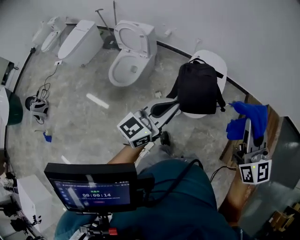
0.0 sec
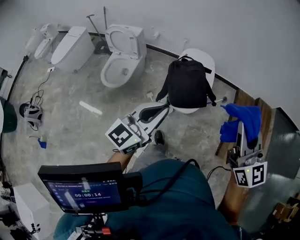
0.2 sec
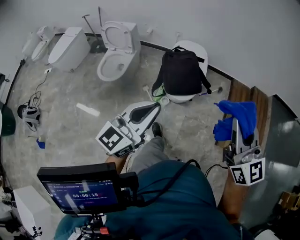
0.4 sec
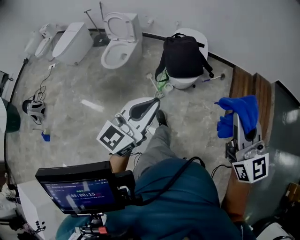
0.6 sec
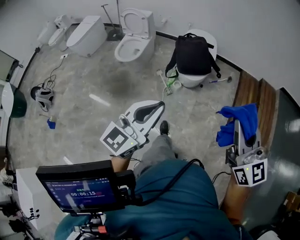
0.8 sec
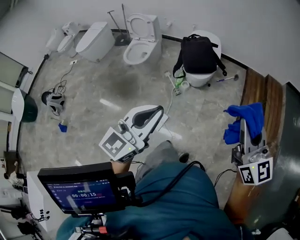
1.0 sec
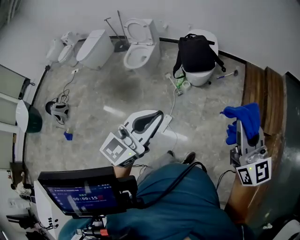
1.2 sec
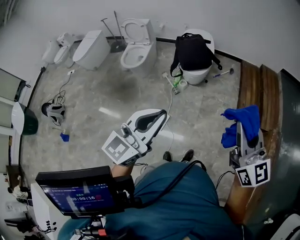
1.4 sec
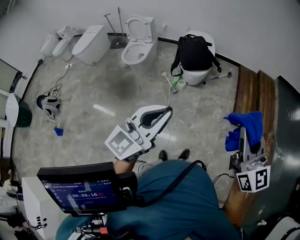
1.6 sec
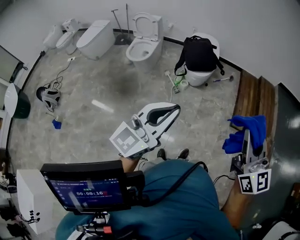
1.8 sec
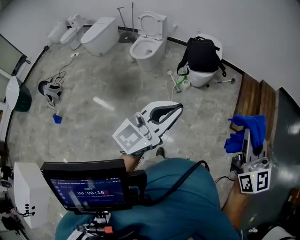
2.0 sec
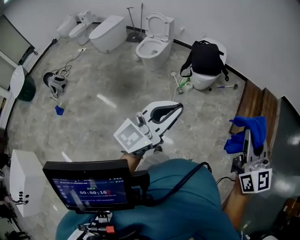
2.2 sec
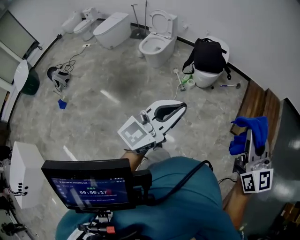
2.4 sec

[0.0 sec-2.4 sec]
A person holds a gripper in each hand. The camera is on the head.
0.0 sec to 1.2 sec: The pair of grippers is taken backward, about 50 cm.
1.2 sec to 2.4 sec: The left gripper moves backward and to the right, some 15 cm; the right gripper moves backward, approximately 15 cm.

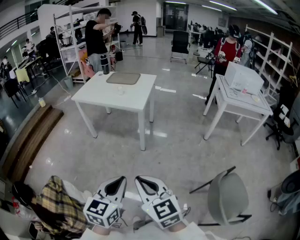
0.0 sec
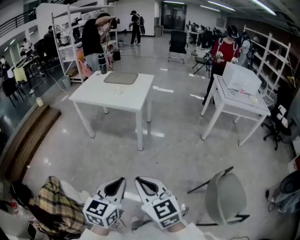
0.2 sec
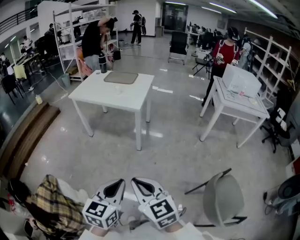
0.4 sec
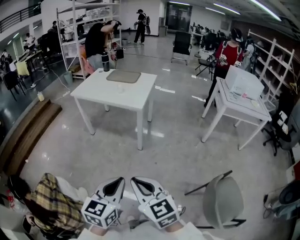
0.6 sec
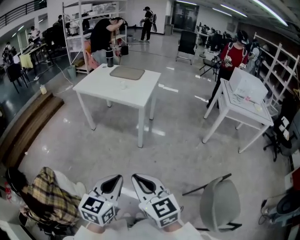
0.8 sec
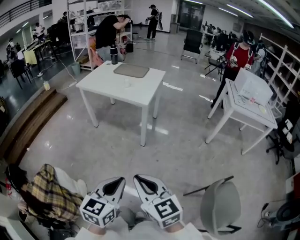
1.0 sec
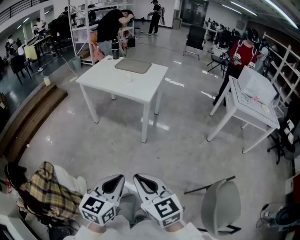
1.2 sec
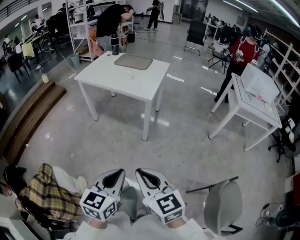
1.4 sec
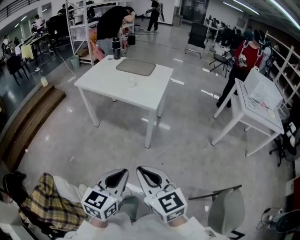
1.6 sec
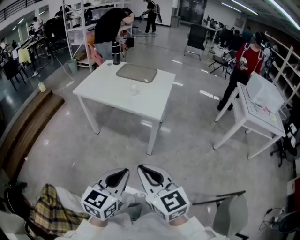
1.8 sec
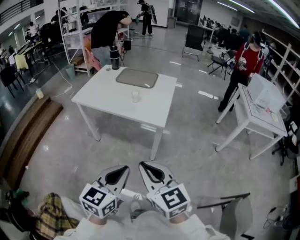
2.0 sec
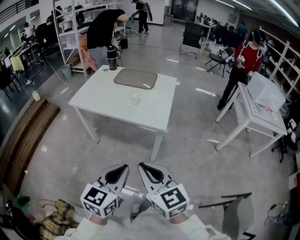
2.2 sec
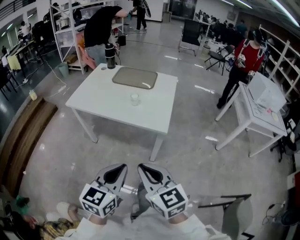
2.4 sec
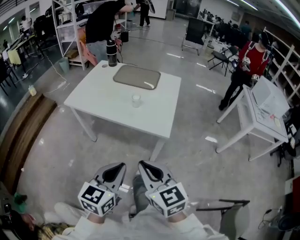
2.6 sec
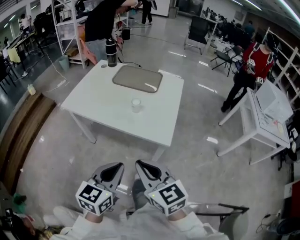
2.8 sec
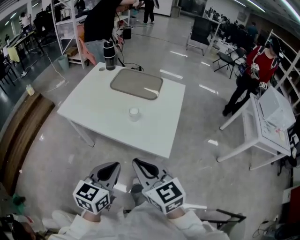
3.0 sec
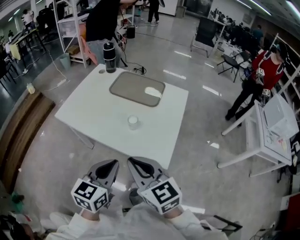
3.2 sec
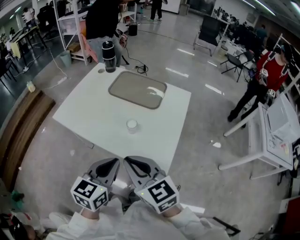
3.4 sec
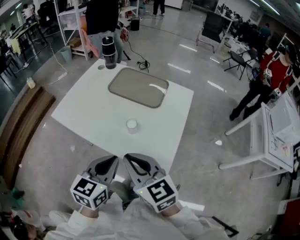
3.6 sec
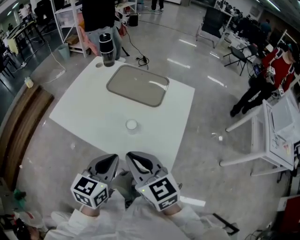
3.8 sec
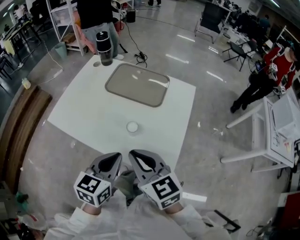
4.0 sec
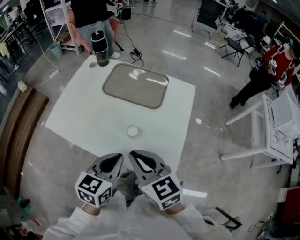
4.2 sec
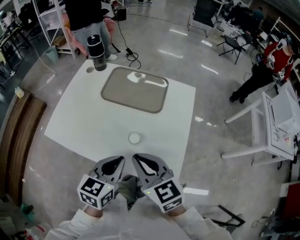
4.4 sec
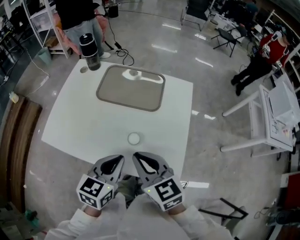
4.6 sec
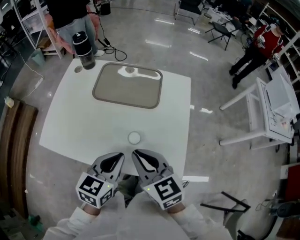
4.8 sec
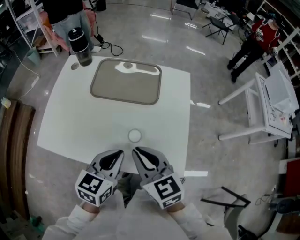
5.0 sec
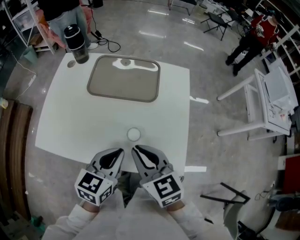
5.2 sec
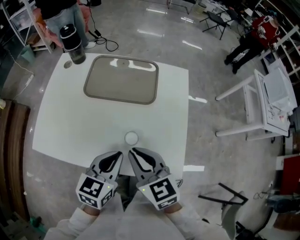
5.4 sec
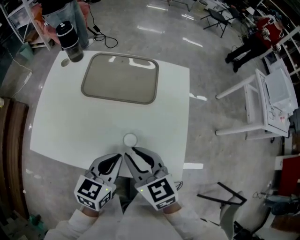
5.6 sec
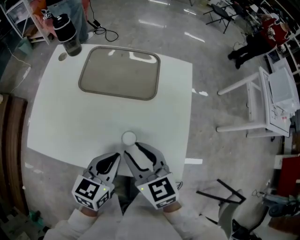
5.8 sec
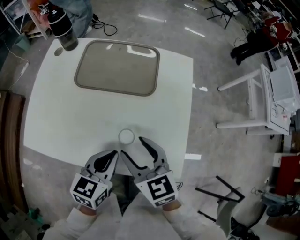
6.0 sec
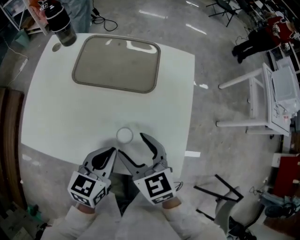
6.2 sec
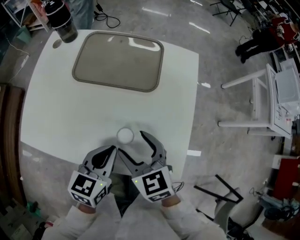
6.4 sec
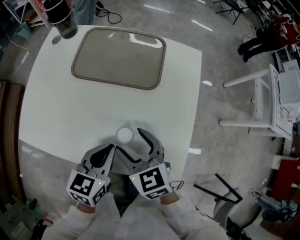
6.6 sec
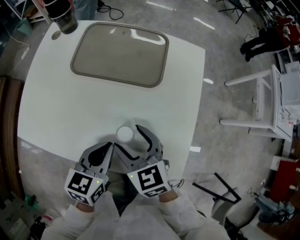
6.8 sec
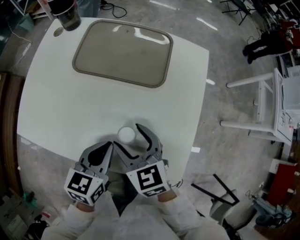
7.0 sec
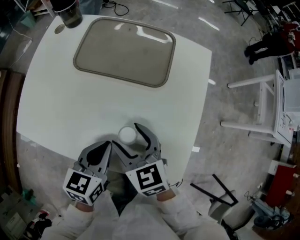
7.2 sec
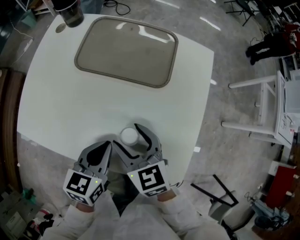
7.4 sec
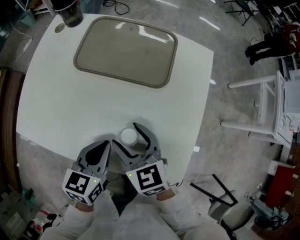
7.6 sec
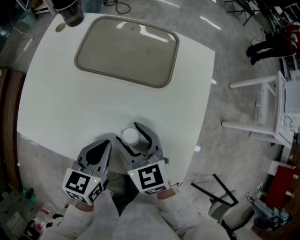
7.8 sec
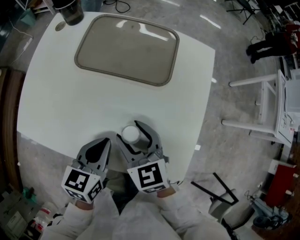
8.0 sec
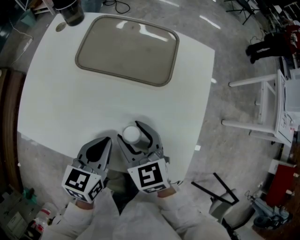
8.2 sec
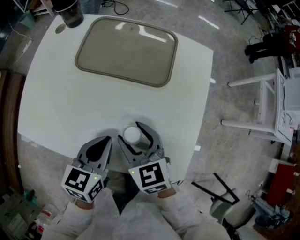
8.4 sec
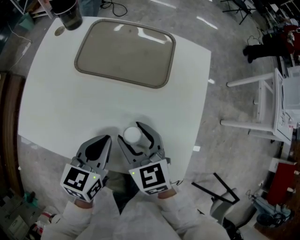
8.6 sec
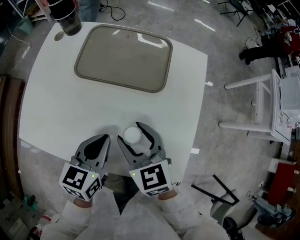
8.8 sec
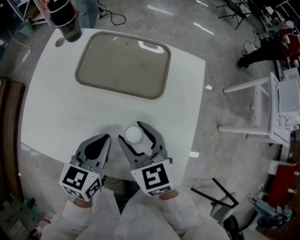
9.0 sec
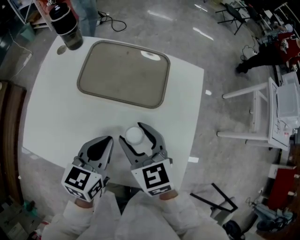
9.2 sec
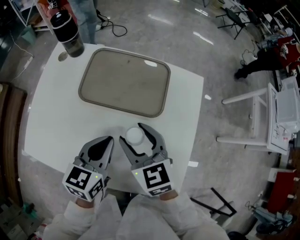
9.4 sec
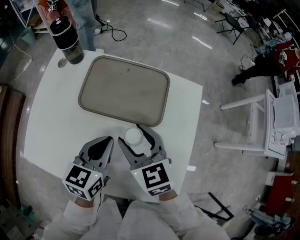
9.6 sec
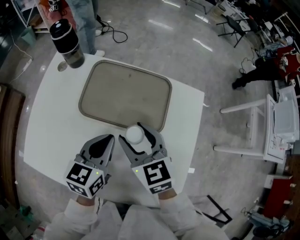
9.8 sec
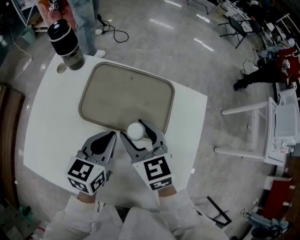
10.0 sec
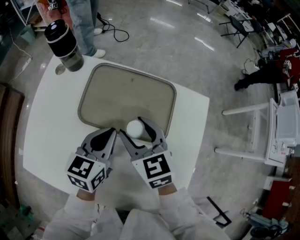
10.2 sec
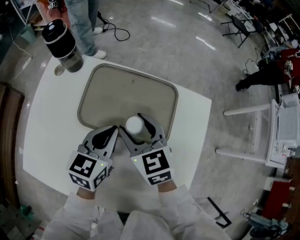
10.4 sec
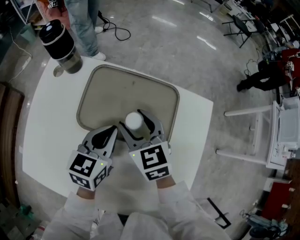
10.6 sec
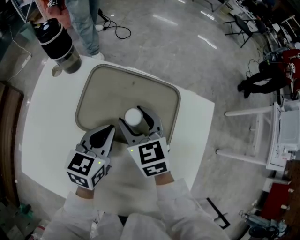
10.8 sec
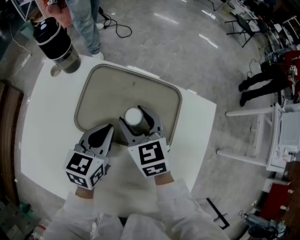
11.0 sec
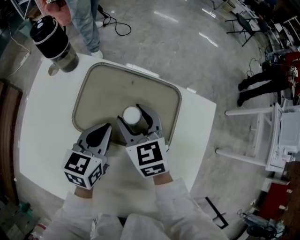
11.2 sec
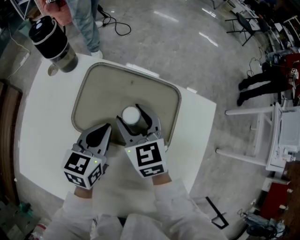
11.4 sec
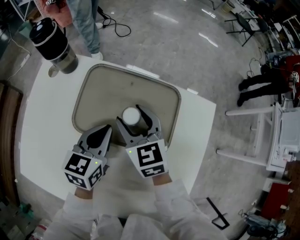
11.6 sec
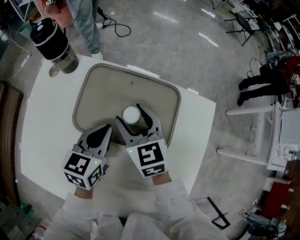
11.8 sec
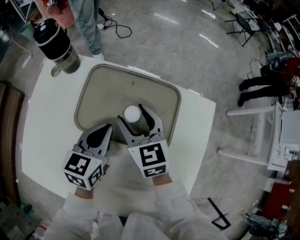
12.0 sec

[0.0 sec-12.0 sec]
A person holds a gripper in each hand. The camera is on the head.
0.0 sec to 1.6 sec: The grippers both shift forward by some 15 cm.
1.6 sec to 3.0 sec: The pair of grippers is taken forward, approximately 40 cm.
3.0 sec to 4.4 sec: Both grippers move forward, approximately 25 cm.
4.4 sec to 6.0 sec: Both grippers travel together downward and forward, approximately 10 cm. The right gripper opens.
6.0 sec to 7.6 sec: The right gripper is displaced downward by approximately 5 cm. The left gripper shifts by approximately 5 cm.
7.6 sec to 9.0 sec: The right gripper ends up some 5 cm from where it was. The left gripper shifts roughly 5 cm forward.
9.0 sec to 10.4 sec: The two grippers go roughly 20 cm forward.
10.4 sec to 12.0 sec: The right gripper goes roughly 5 cm forward.

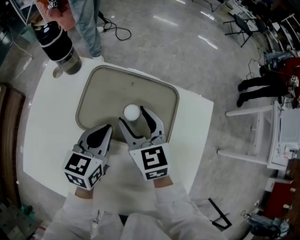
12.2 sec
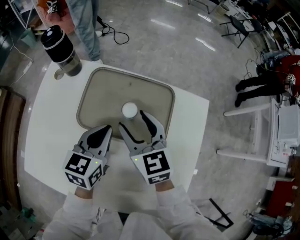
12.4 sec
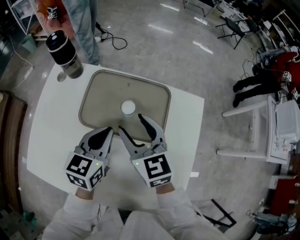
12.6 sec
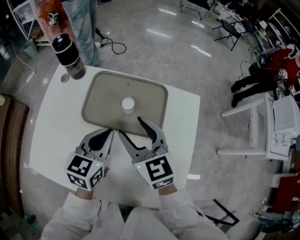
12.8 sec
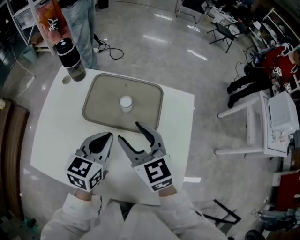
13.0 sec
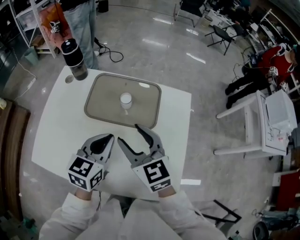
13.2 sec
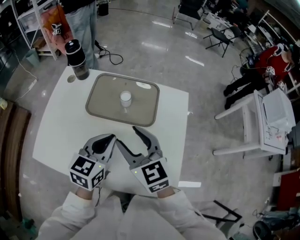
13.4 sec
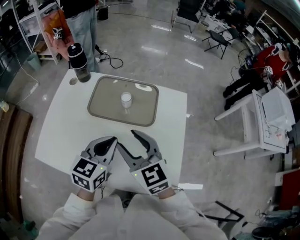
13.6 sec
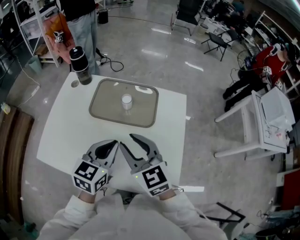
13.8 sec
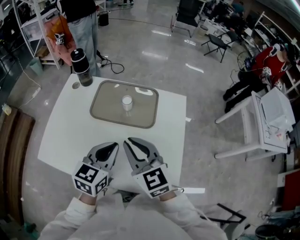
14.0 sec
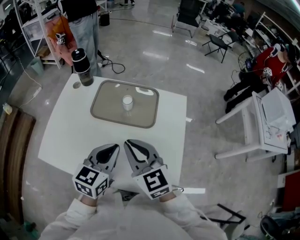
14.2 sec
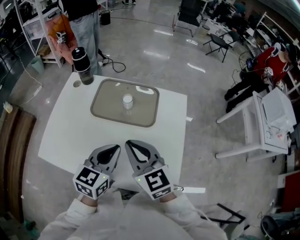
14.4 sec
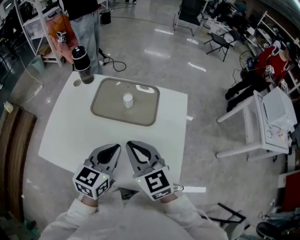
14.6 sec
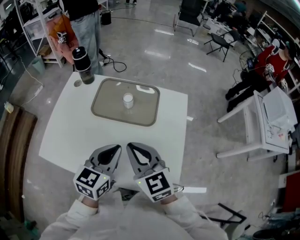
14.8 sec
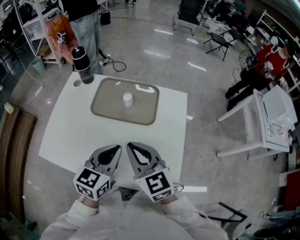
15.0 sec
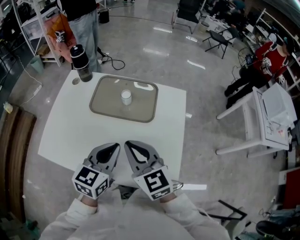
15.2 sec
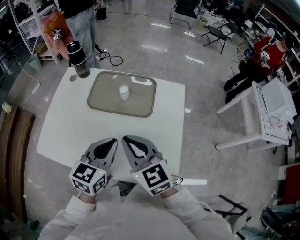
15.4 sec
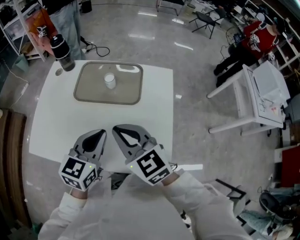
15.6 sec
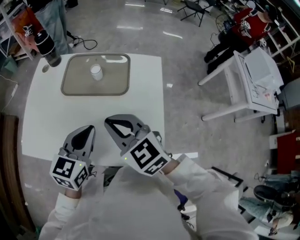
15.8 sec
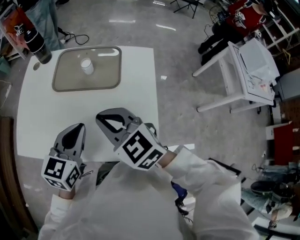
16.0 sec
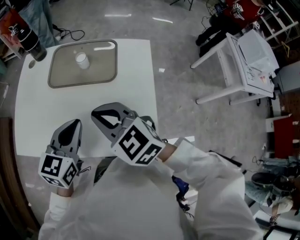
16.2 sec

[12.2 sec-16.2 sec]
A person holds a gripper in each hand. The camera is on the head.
12.2 sec to 13.6 sec: Both grippers move backward and upward, approximately 25 cm.
13.6 sec to 14.8 sec: The right gripper closes its fingers.
14.8 sec to 16.2 sec: The grippers stay close to where they were, moving slightly.

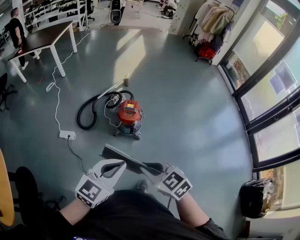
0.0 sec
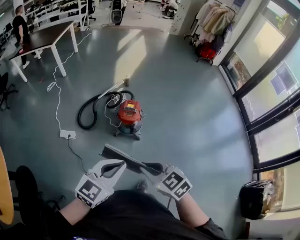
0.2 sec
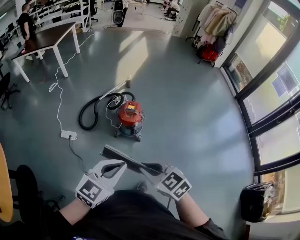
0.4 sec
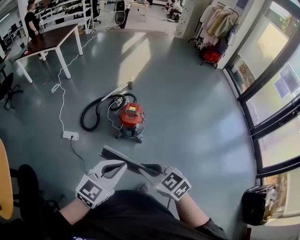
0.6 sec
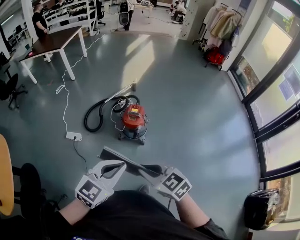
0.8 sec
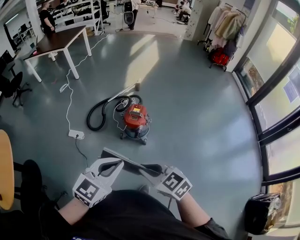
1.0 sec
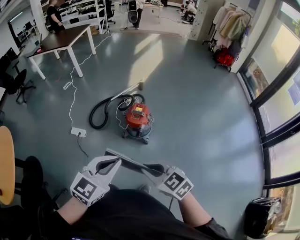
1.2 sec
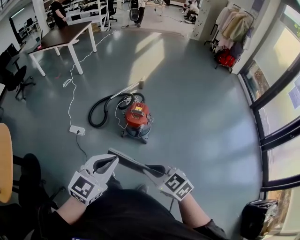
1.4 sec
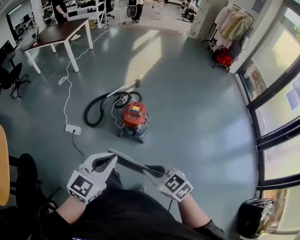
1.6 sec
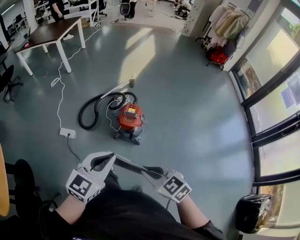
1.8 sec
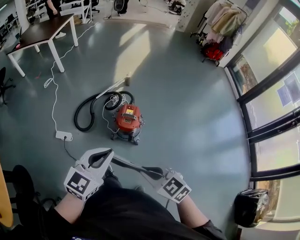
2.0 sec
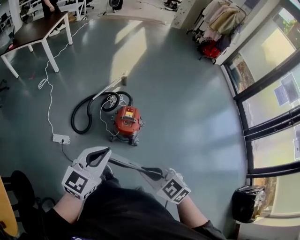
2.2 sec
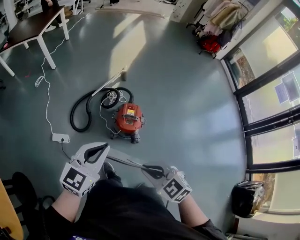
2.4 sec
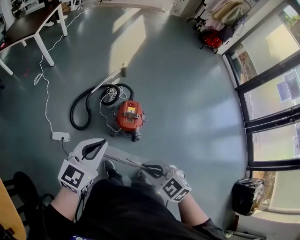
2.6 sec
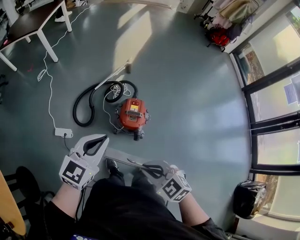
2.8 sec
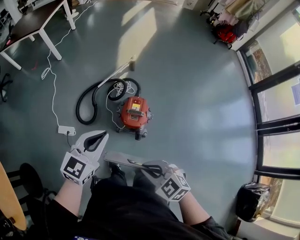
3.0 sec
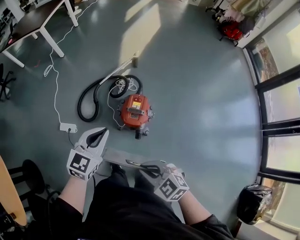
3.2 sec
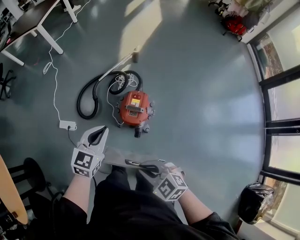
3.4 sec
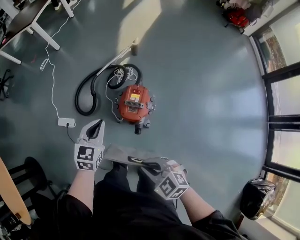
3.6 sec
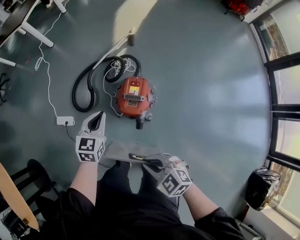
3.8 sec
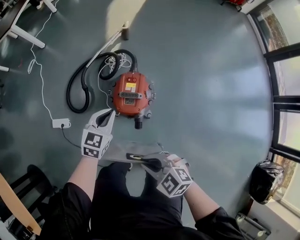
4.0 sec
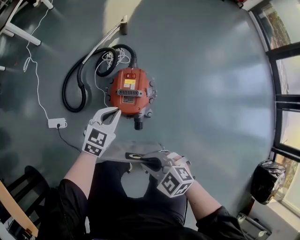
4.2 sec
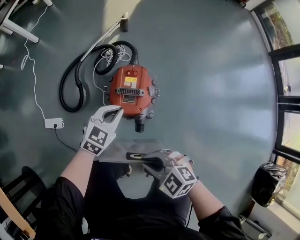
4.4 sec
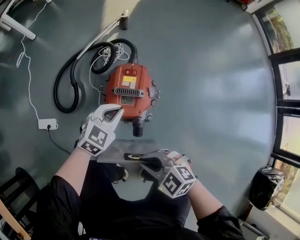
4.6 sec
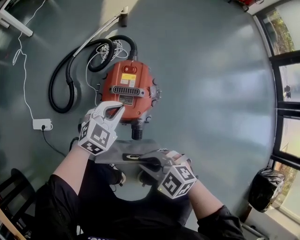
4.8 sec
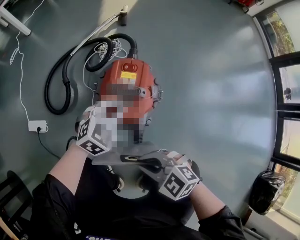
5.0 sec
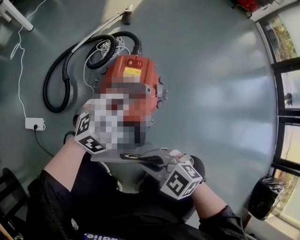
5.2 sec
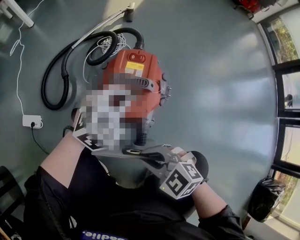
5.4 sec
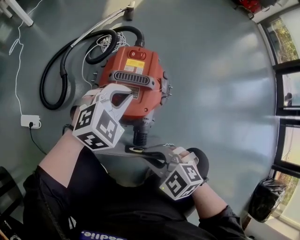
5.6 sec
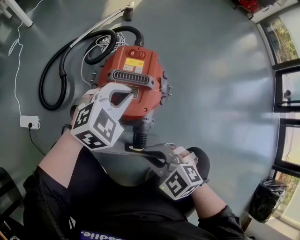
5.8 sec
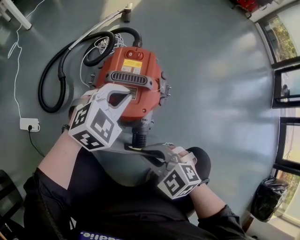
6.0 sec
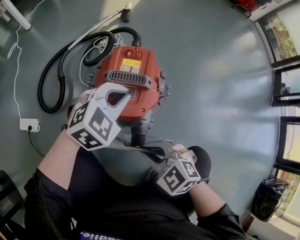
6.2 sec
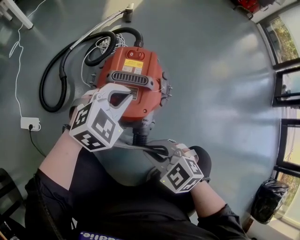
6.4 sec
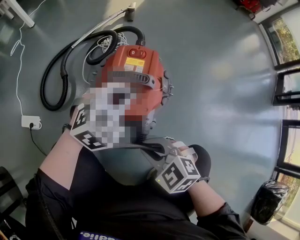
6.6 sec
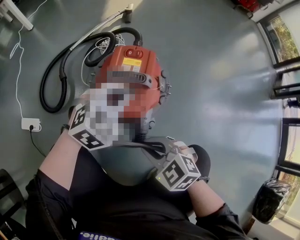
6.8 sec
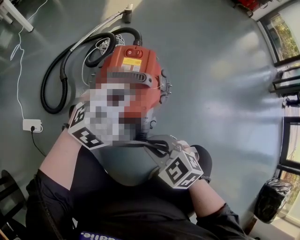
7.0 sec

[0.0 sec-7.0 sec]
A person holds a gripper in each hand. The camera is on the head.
0.0 sec to 1.4 sec: The right gripper moves to the right, some 10 cm; the left gripper shifts about 5 cm to the right.
1.4 sec to 2.8 sec: The right gripper moves forward, approximately 20 cm. Meanwhile the left gripper is displaced forward by some 30 cm.
2.8 sec to 4.2 sec: The left gripper heads downward, covering approximately 40 cm, and turns by roughly 20 degrees. The right gripper heads downward, covering roughly 25 cm.
4.2 sec to 5.6 sec: The two grippers go some 20 cm downward. The left gripper rotates roughly 30 degrees.
5.6 sec to 7.0 sec: The right gripper shifts by some 5 cm.
